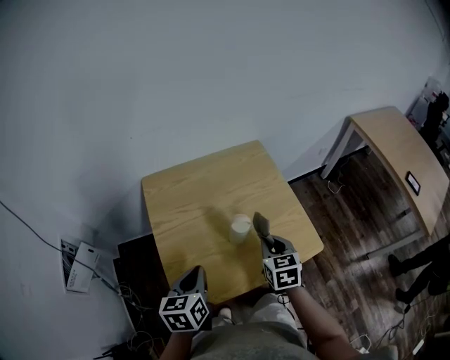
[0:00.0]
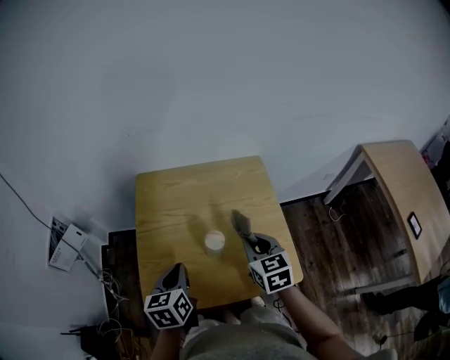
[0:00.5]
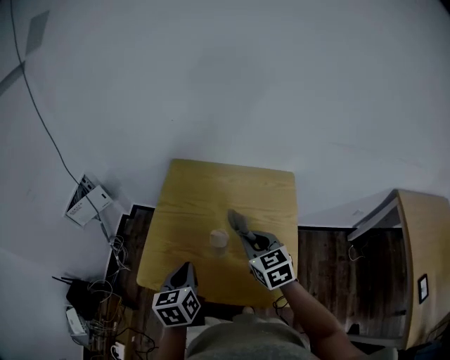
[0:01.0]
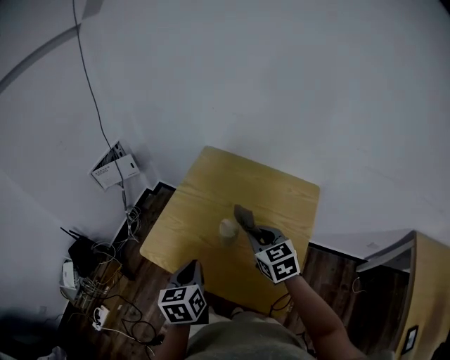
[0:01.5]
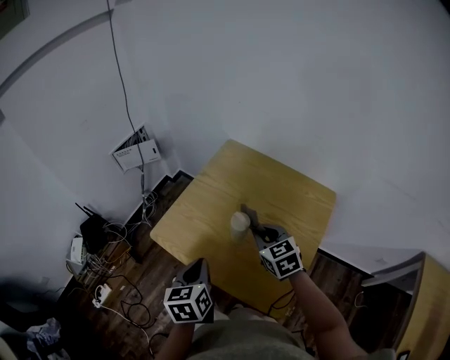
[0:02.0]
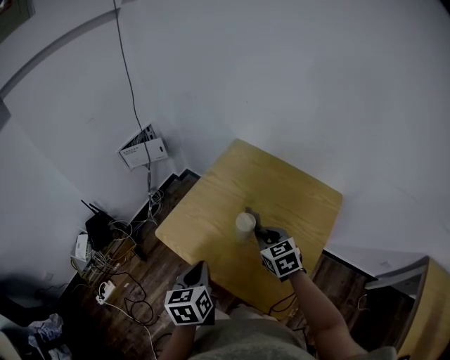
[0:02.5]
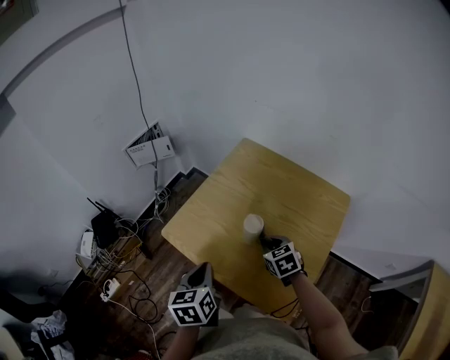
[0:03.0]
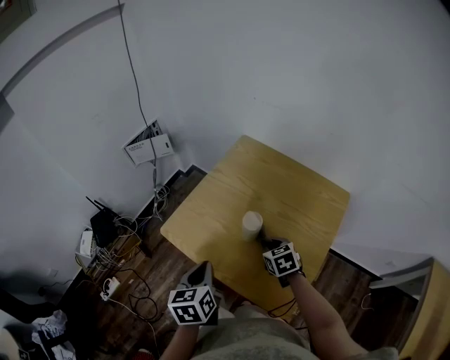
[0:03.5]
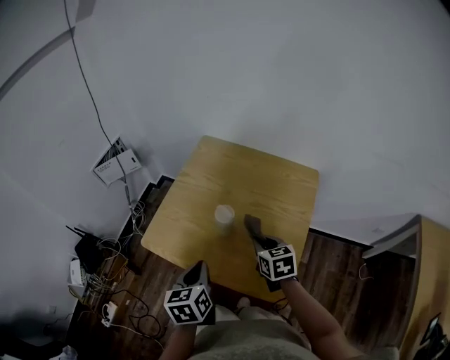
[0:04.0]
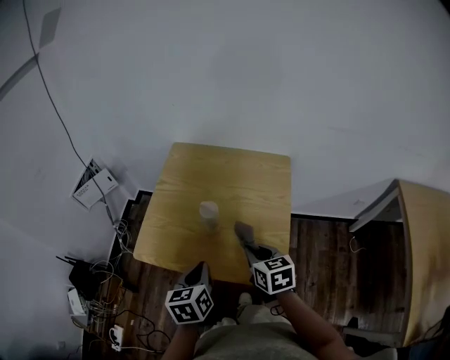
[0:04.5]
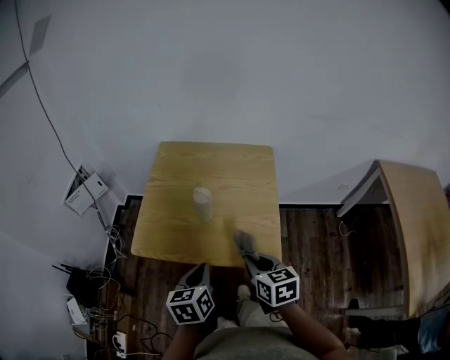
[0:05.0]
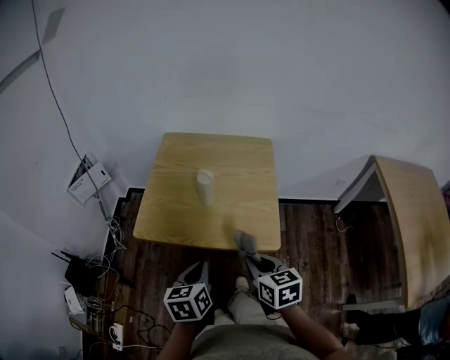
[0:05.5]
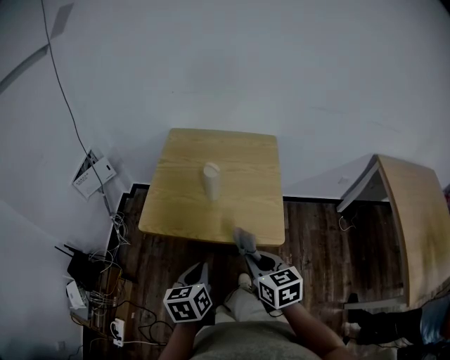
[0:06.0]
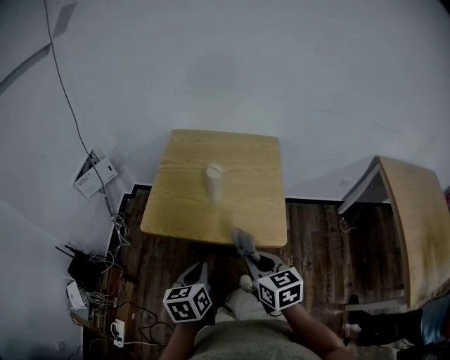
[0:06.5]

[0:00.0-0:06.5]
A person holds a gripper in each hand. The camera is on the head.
0:00.0 to 0:02.0: The left gripper ends up approximately 15 cm from where it was, and turns by about 50 degrees, while the right gripper changes place by about 10 cm, and rotates roughly 70 degrees.
0:02.0 to 0:04.5: The left gripper swivels roughly 20 degrees. Meanwhile the right gripper reaches about 10 cm downward, then returns, and turns by some 40 degrees.
0:04.5 to 0:06.5: The two grippers go about 15 cm backward.

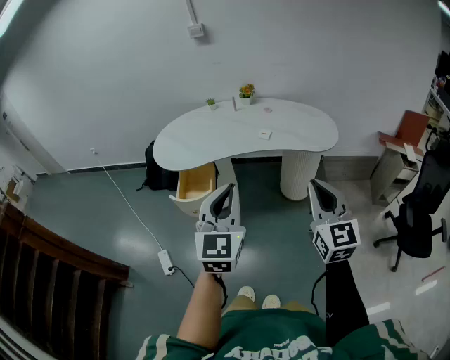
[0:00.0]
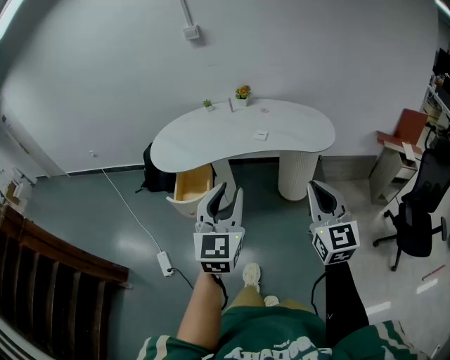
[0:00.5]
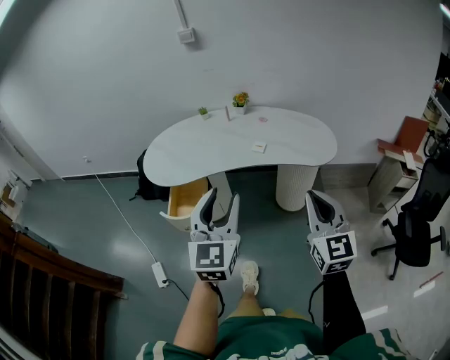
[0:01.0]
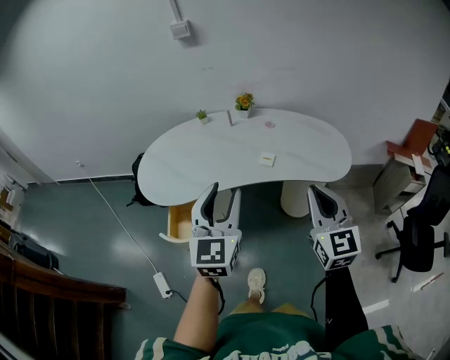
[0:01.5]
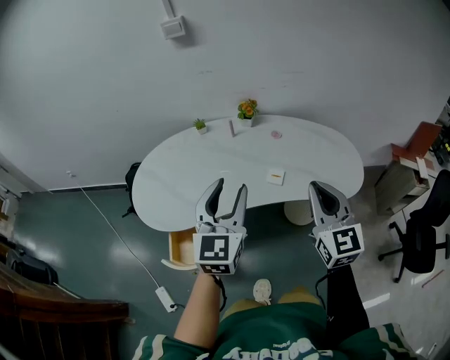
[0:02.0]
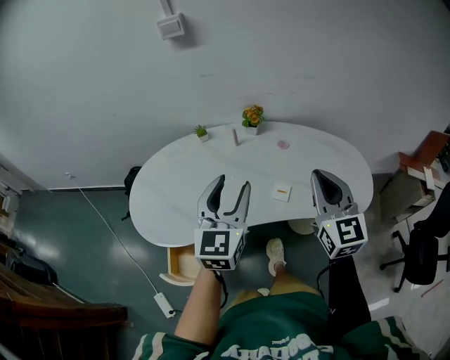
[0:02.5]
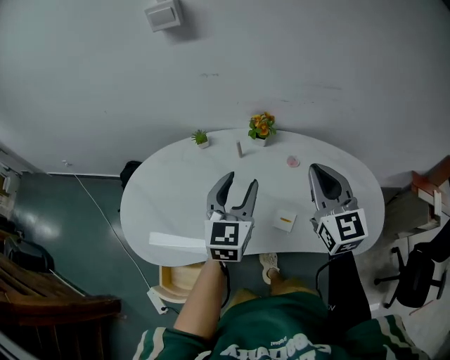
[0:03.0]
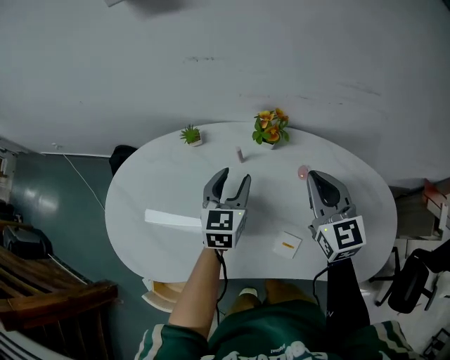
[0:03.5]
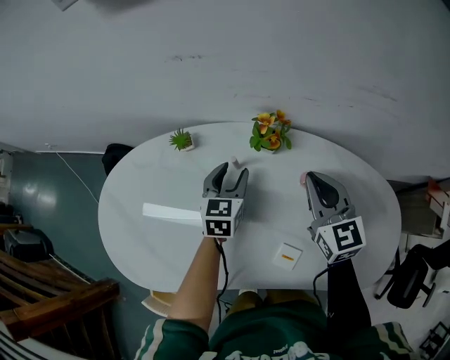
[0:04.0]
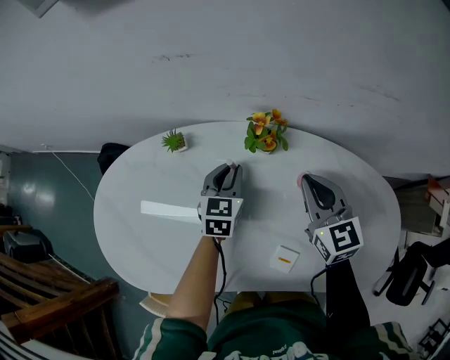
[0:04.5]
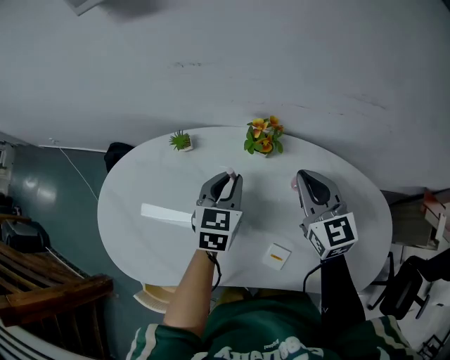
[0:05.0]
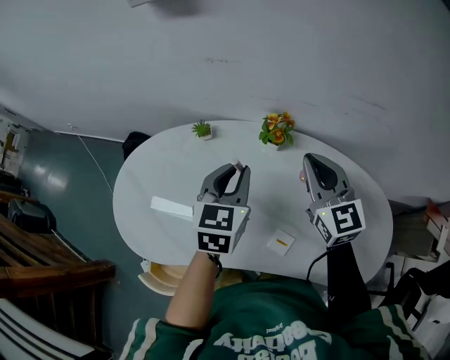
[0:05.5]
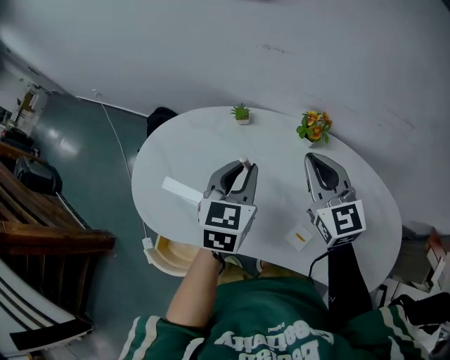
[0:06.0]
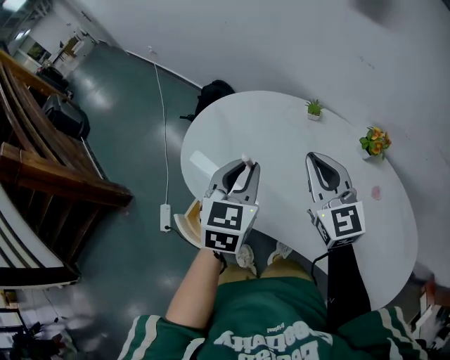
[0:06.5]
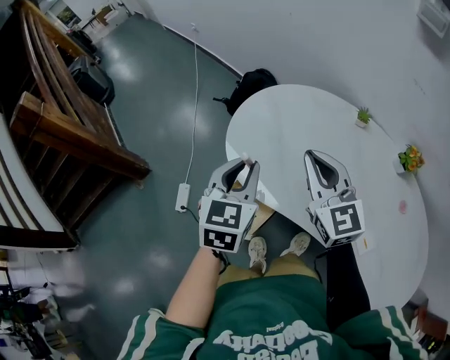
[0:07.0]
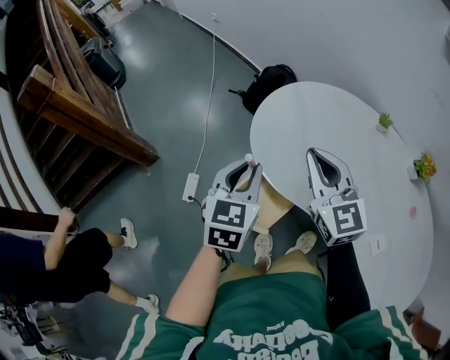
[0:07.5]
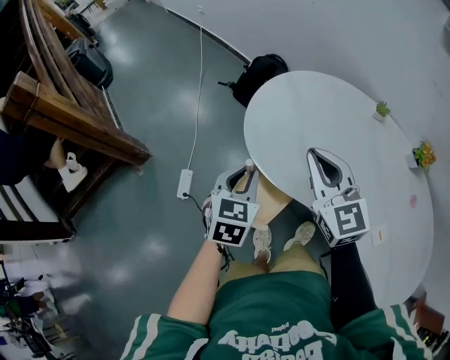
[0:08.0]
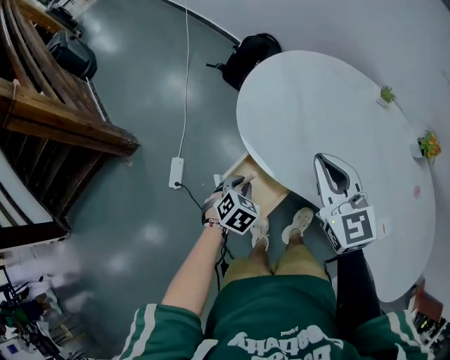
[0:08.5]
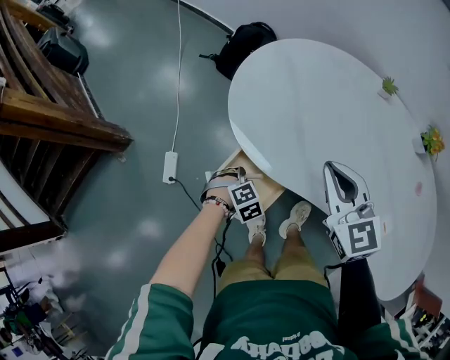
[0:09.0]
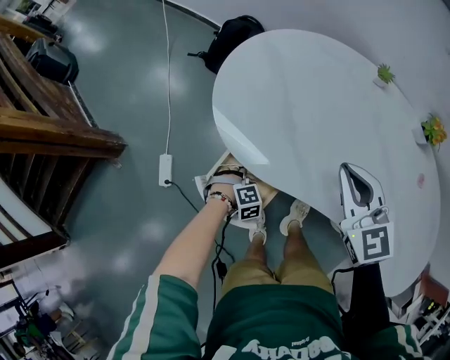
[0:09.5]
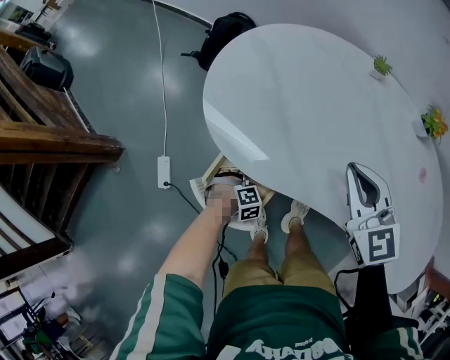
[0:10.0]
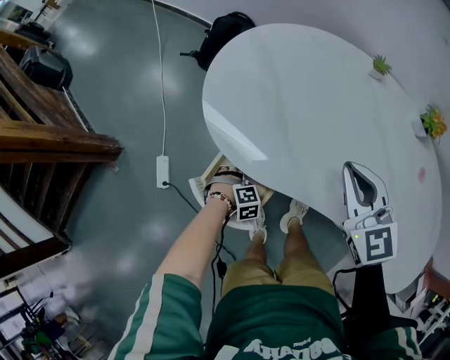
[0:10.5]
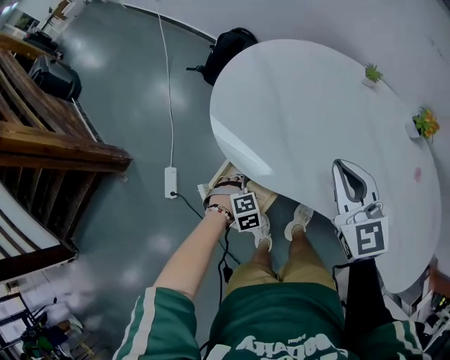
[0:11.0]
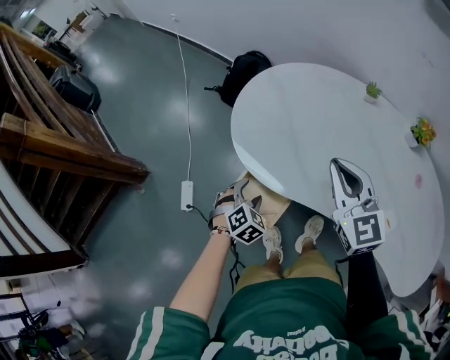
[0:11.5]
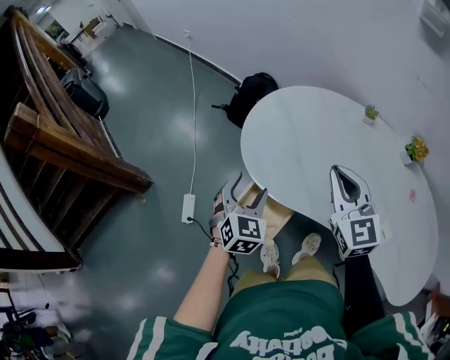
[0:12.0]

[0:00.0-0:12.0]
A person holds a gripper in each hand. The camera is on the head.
0:00.0 to 0:02.0: Both grippers move forward, roughly 35 cm. The left gripper opens up.
0:02.0 to 0:04.0: Both grippers are carried forward, roughly 50 cm. The left gripper heads downward, covering some 30 cm, and changes its angle by about 30 degrees; the right gripper is displaced downward by some 20 cm, and turns by roughly 20 degrees.
0:04.0 to 0:06.0: The left gripper heads upward, backward and to the left, covering about 25 cm, and closes, while the right gripper is displaced to the left and upward by approximately 15 cm, and swivels some 20 degrees.
0:06.0 to 0:08.0: The two grippers travel together, about 50 cm. The right gripper rotates roughly 30 degrees. The left gripper changes its angle by some 30 degrees.
0:08.0 to 0:10.0: The left gripper goes approximately 40 cm downward, and rolls clockwise, seen from behind, by approximately 70 degrees, while the right gripper moves some 20 cm.
0:10.0 to 0:12.0: The right gripper moves upward, about 10 cm; the left gripper heads upward, covering approximately 35 cm, tilts its fingers roughly 50 degrees upward, and opens.

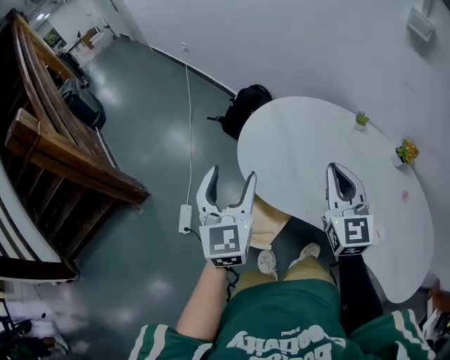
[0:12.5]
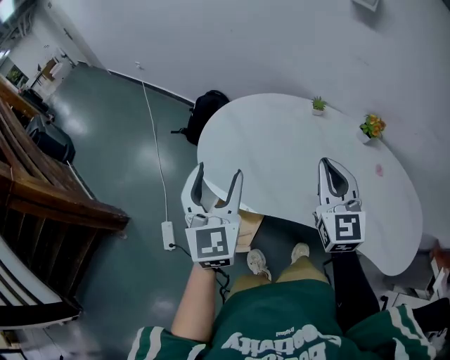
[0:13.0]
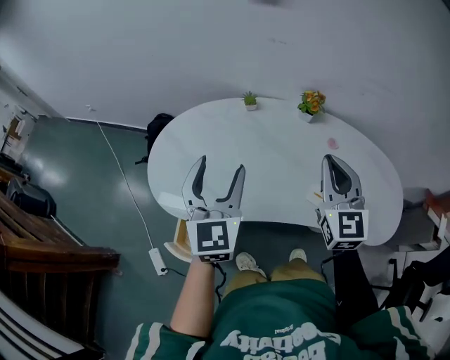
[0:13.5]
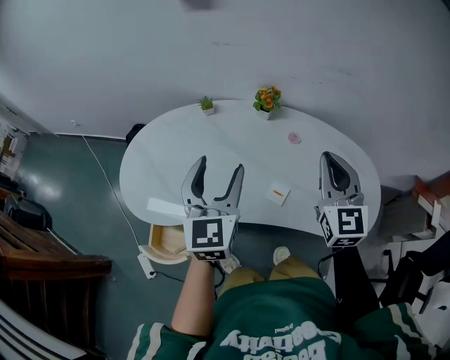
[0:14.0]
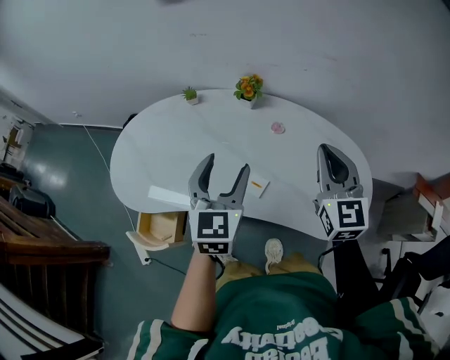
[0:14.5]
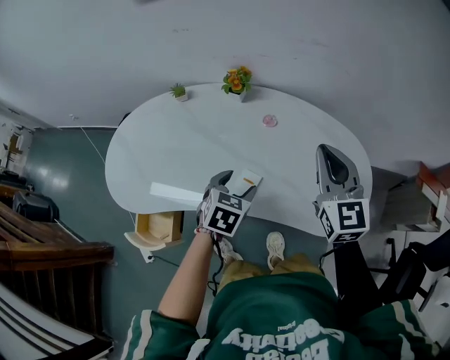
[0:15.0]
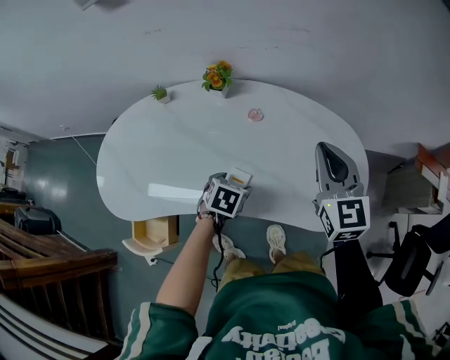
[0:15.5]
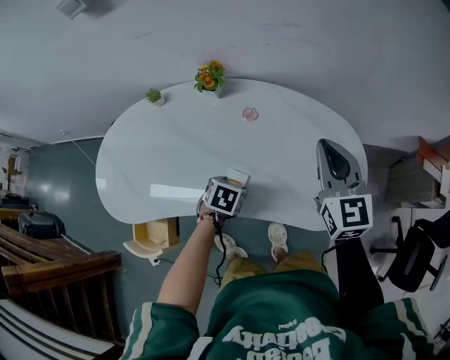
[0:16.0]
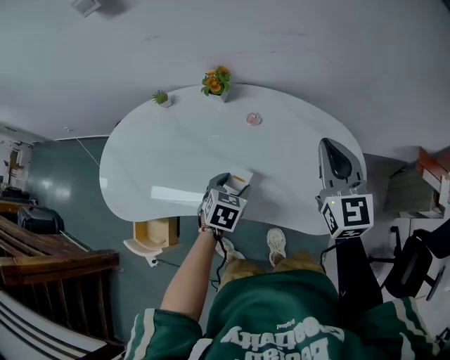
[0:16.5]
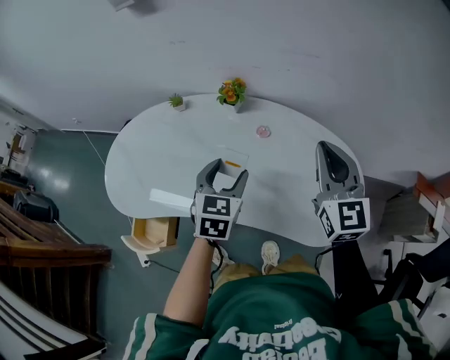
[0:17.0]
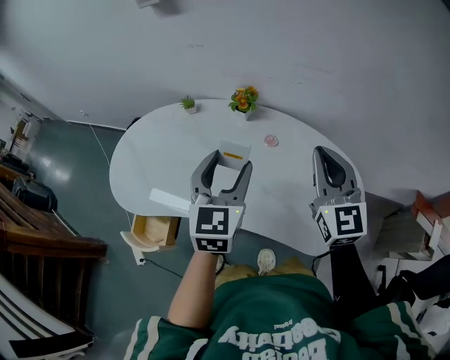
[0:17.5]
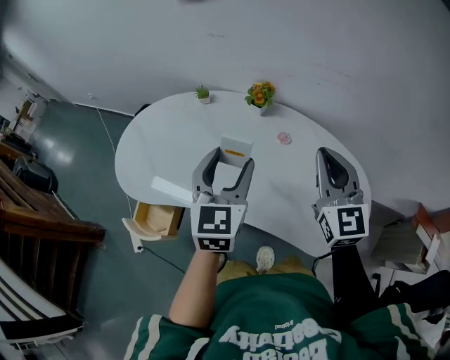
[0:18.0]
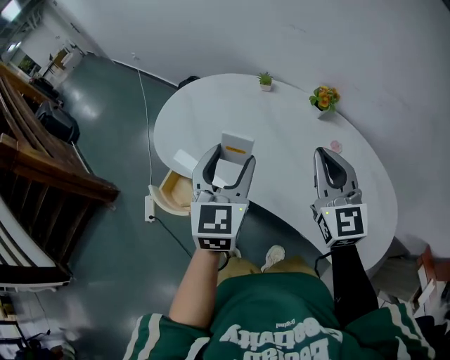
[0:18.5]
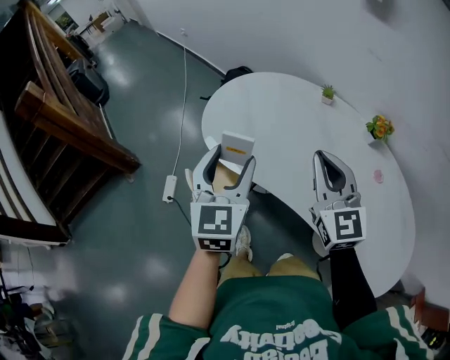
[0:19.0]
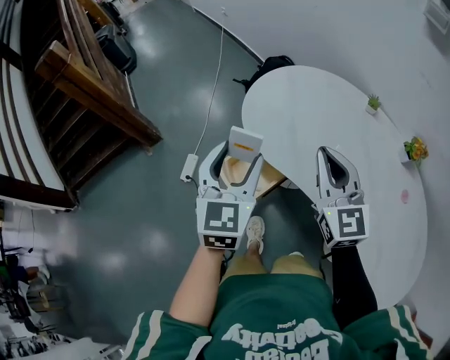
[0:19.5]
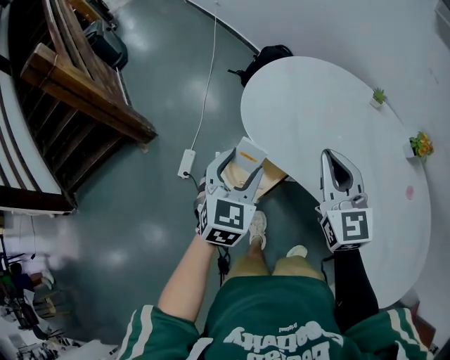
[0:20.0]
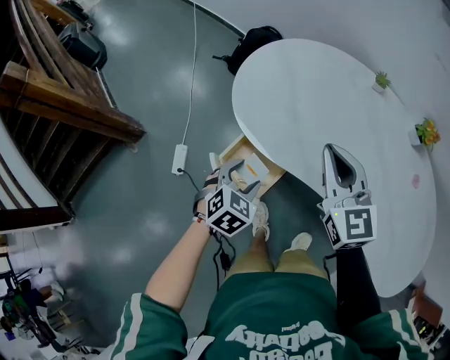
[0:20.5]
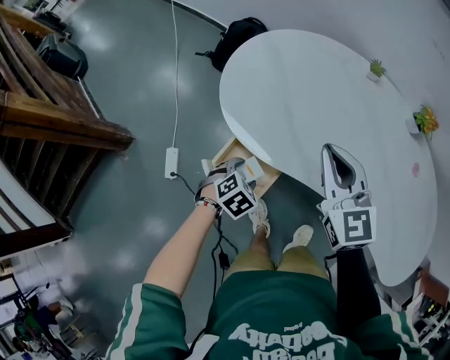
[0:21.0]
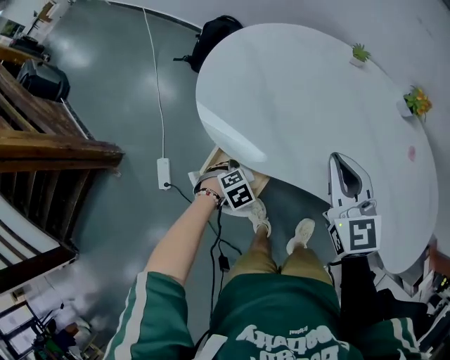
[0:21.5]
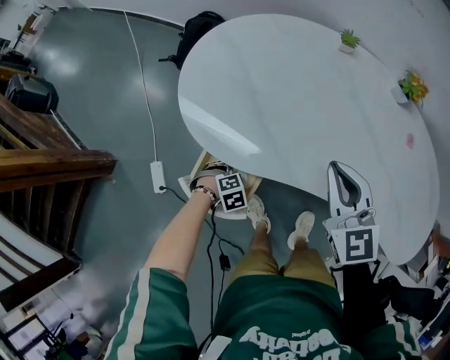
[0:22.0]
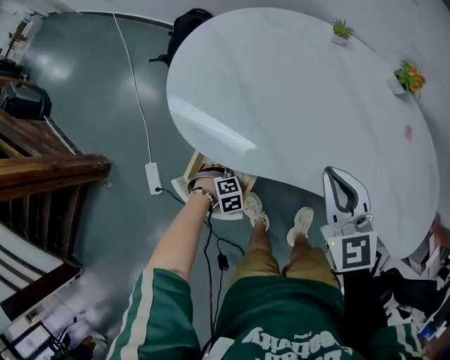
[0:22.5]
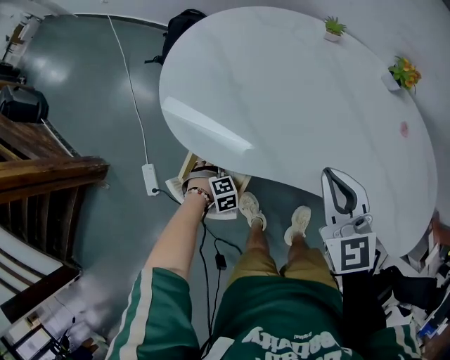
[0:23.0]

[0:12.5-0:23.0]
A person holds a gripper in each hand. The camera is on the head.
0:12.5 to 0:14.5: The pair of grippers is taken approximately 50 cm. The right gripper turns by about 30 degrees; the left gripper changes its angle by some 40 degrees.
0:14.5 to 0:16.5: The right gripper goes approximately 10 cm to the right, while the left gripper heads downward, covering approximately 20 cm, and tips its fingers downward by roughly 40 degrees.
0:16.5 to 0:19.0: The two grippers travel together, approximately 40 cm. The right gripper changes its angle by roughly 40 degrees. Meanwhile the left gripper tilts its fingers approximately 40 degrees upward.
0:19.0 to 0:21.0: The left gripper goes some 35 cm downward, and tilts its fingers approximately 50 degrees downward; the right gripper changes place by about 20 cm.
0:21.0 to 0:23.0: The left gripper shifts roughly 20 cm downward, and turns by some 40 degrees; the right gripper shifts by roughly 10 cm.
